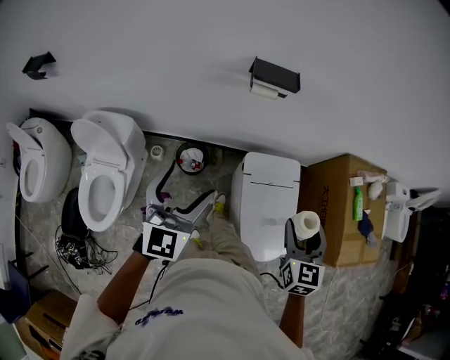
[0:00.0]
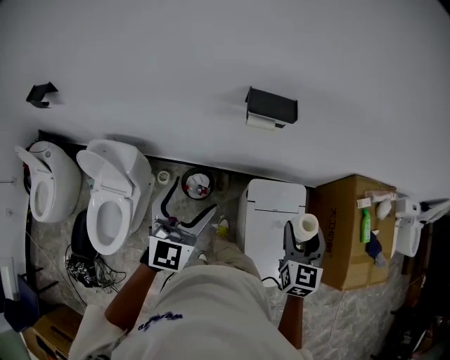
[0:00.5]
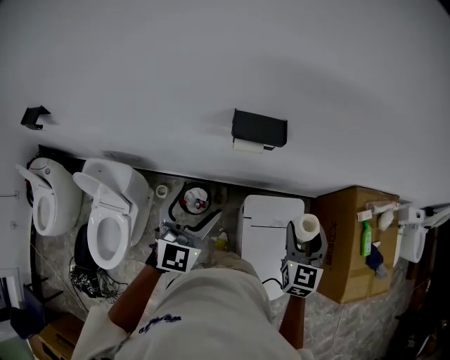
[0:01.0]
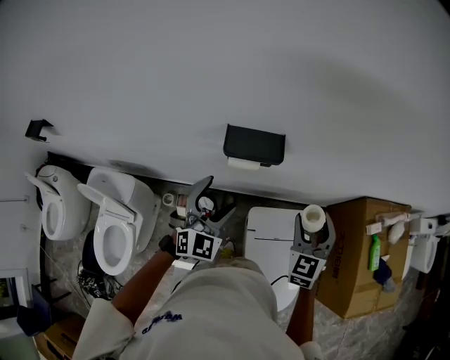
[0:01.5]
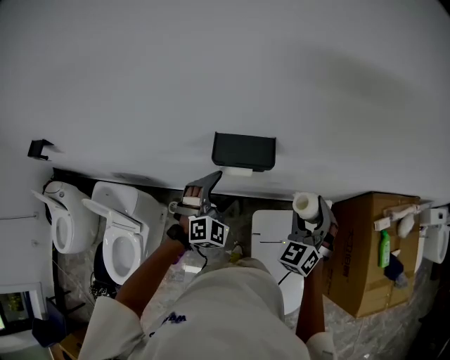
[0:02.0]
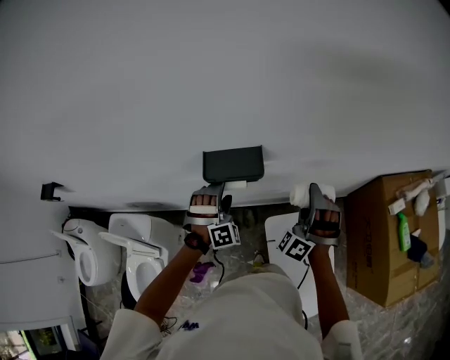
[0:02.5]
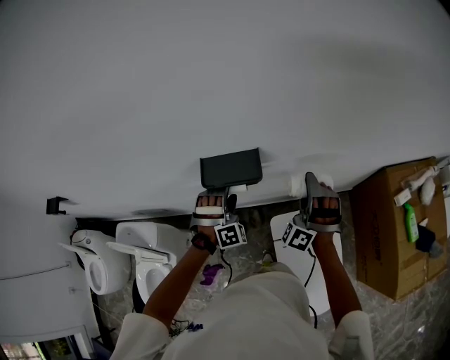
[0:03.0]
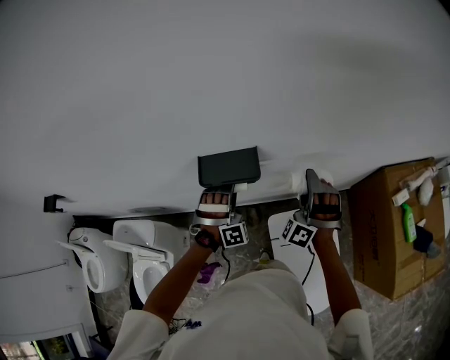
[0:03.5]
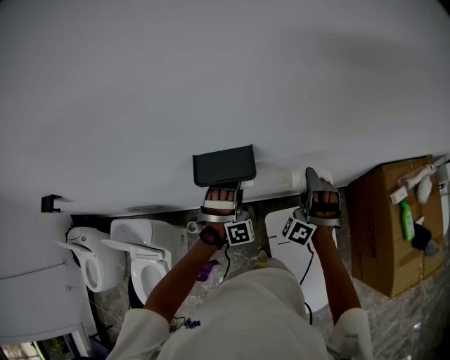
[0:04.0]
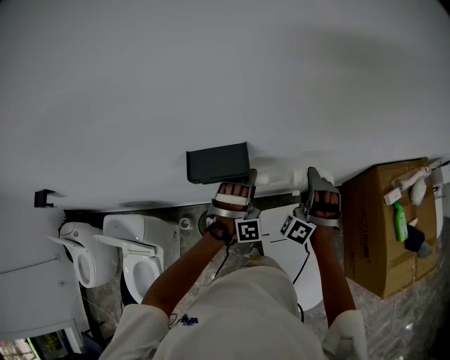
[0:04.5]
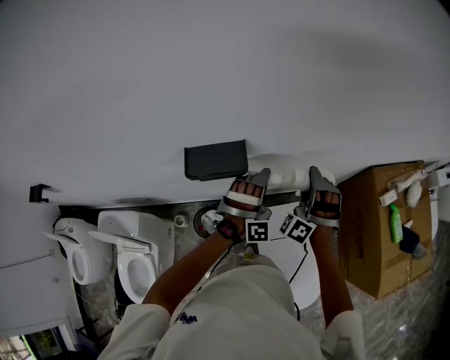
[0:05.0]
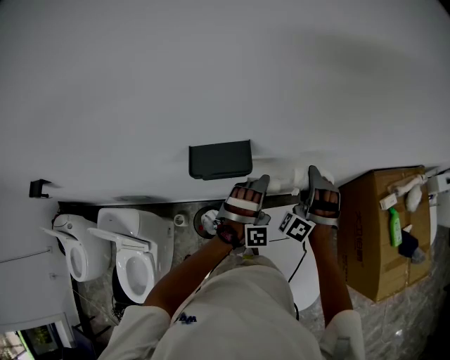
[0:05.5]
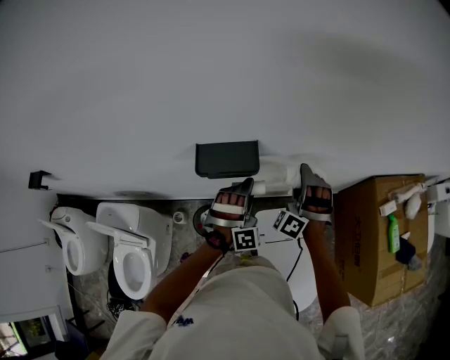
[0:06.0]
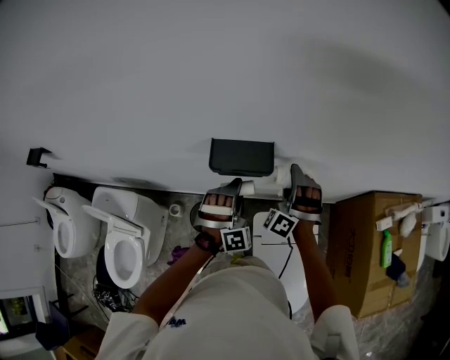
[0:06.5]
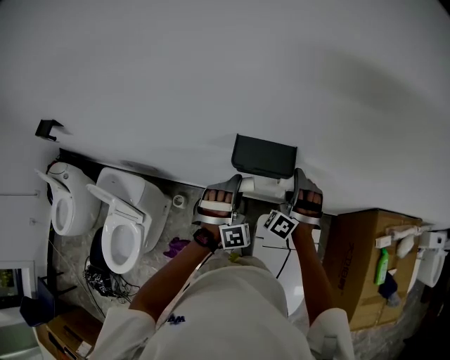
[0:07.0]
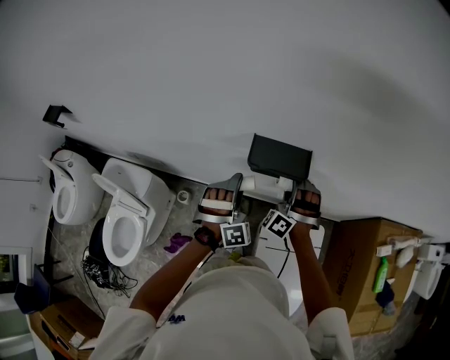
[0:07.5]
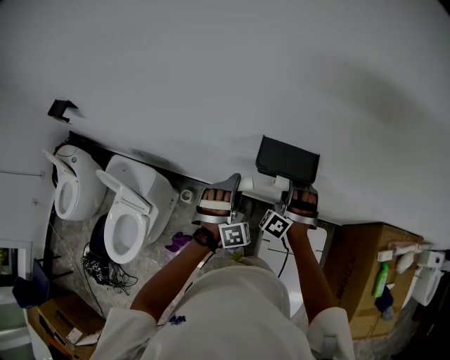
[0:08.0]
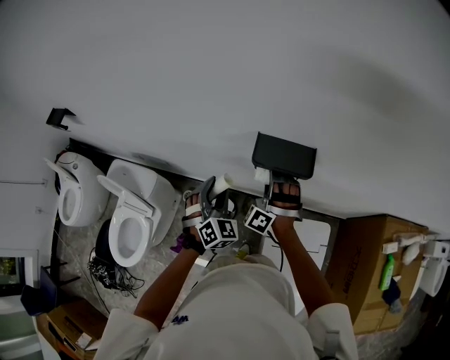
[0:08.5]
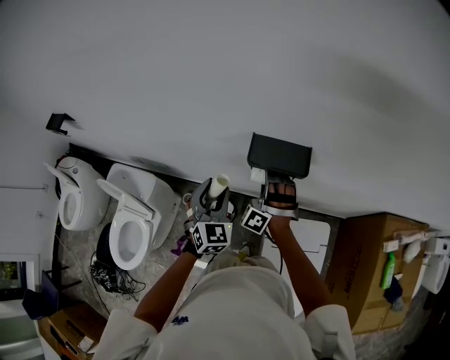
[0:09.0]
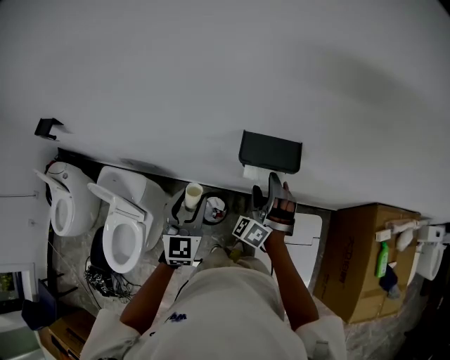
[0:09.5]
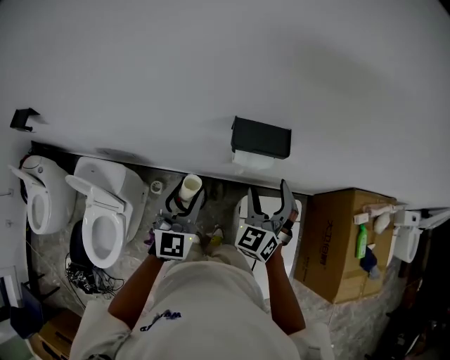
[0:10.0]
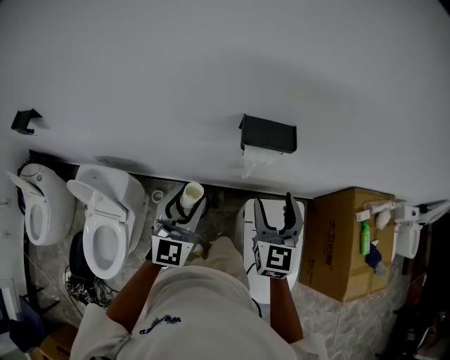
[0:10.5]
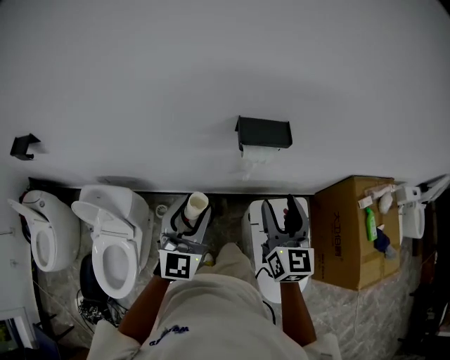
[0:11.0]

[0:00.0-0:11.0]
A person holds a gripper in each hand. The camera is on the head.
0.0 to 2.0 s: The right gripper shifts approximately 35 cm forward, and changes its angle by about 30 degrees; the left gripper travels forward and downward by roughly 35 cm, and changes its angle by approximately 50 degrees.
2.0 to 3.5 s: Both grippers travel together forward, some 5 cm. The left gripper swivels approximately 40 degrees, and closes its fingers. Meanwhile the right gripper rotates approximately 40 degrees.
3.5 to 5.5 s: The left gripper heads to the right, covering about 15 cm.
5.5 to 7.5 s: Both grippers move to the left, approximately 20 cm. The left gripper turns by approximately 30 degrees.
7.5 to 9.0 s: The grippers both shift to the left by some 10 cm. The left gripper twists roughly 50 degrees counterclockwise, seen from behind.
9.0 to 11.0 s: The right gripper is displaced backward and upward by approximately 25 cm, and rolls clockwise, seen from behind, by roughly 90 degrees. The left gripper moves backward and upward, roughly 15 cm, and rotates about 30 degrees.

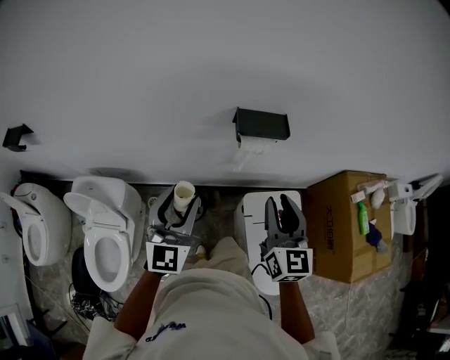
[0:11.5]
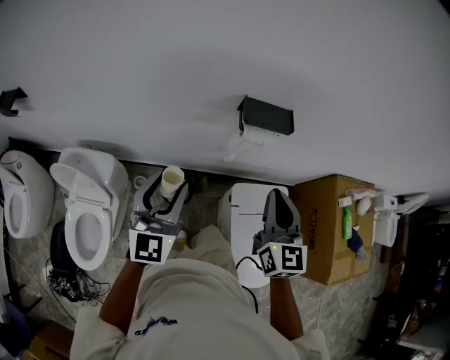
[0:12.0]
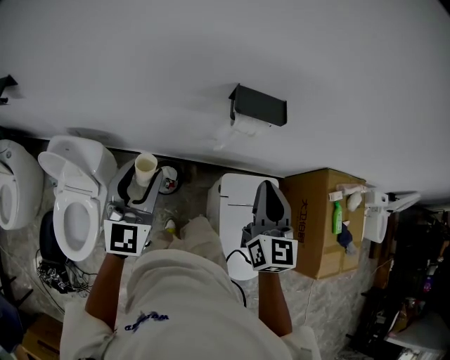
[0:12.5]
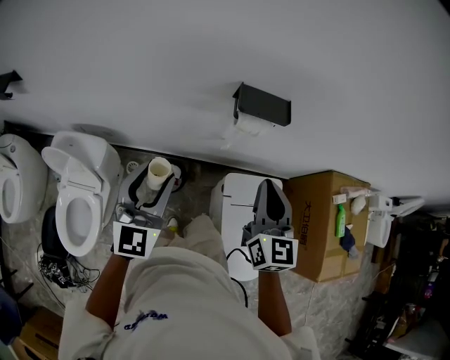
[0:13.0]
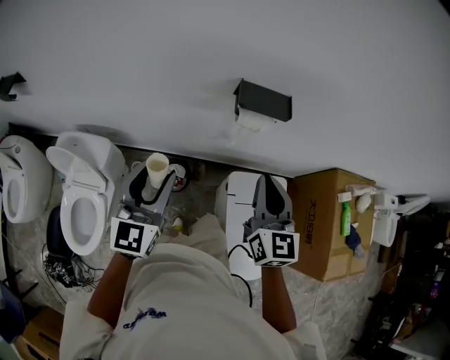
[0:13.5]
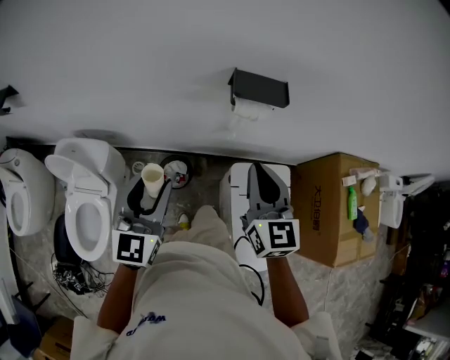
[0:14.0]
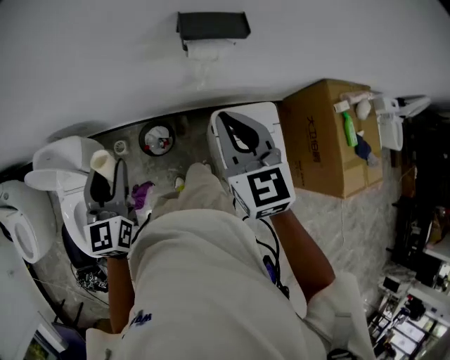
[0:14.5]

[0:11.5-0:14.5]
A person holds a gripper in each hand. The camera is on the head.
11.5 to 13.0 s: There are only small adjustments of the grippers.
13.0 to 14.5 s: The right gripper shifts by some 5 cm. Meanwhile the left gripper travels downward and to the left by approximately 10 cm.

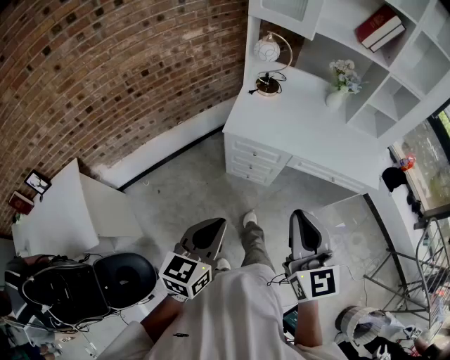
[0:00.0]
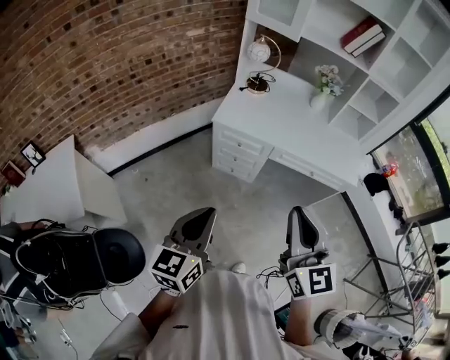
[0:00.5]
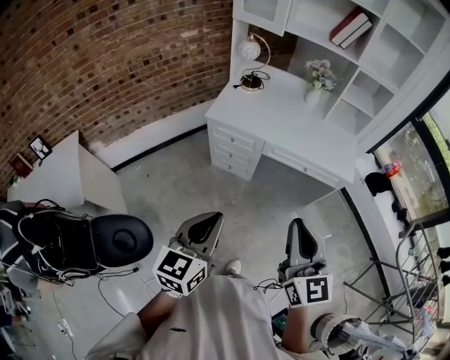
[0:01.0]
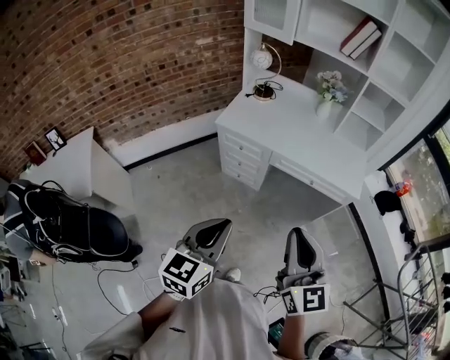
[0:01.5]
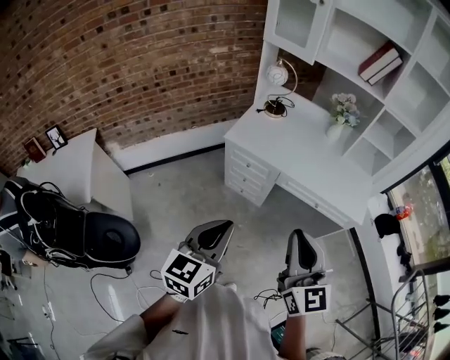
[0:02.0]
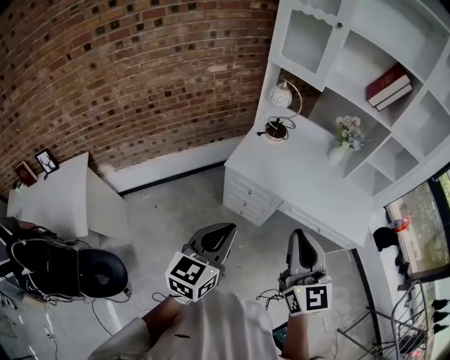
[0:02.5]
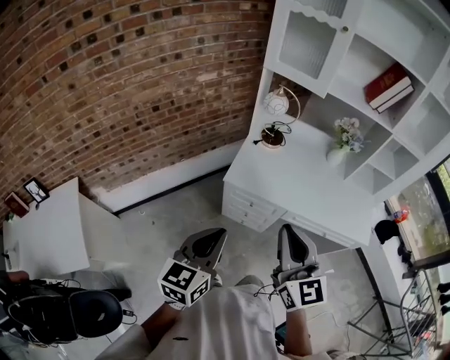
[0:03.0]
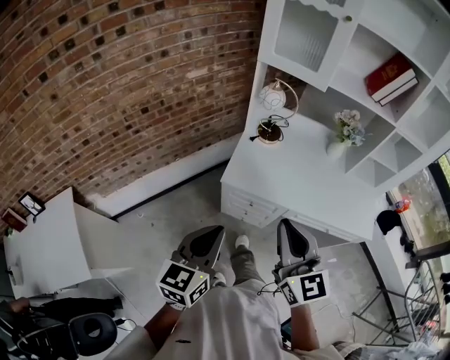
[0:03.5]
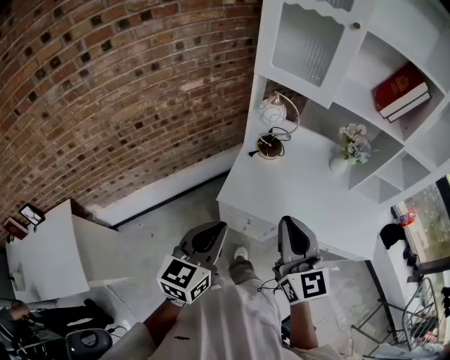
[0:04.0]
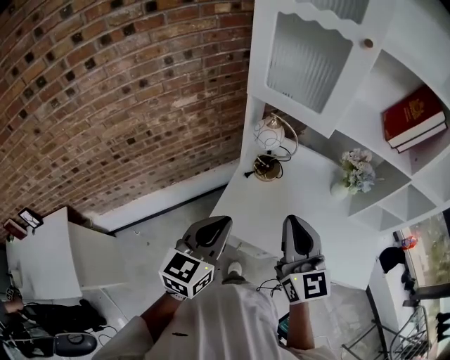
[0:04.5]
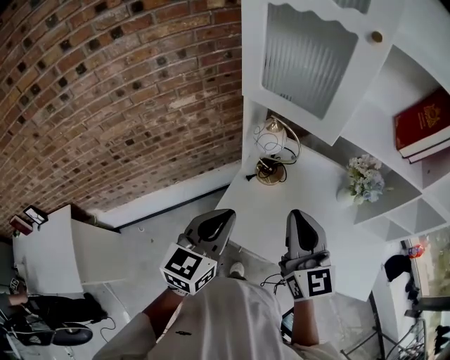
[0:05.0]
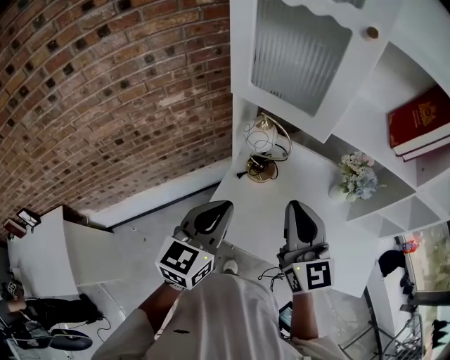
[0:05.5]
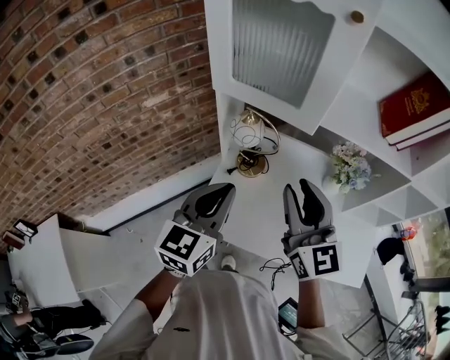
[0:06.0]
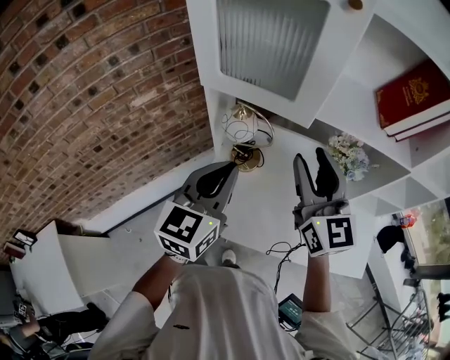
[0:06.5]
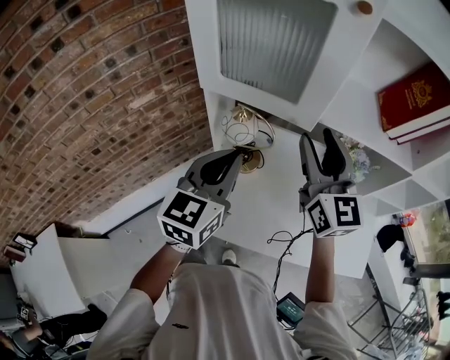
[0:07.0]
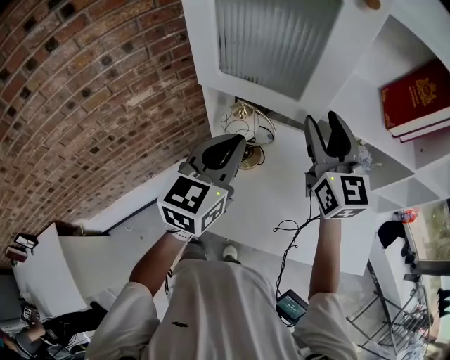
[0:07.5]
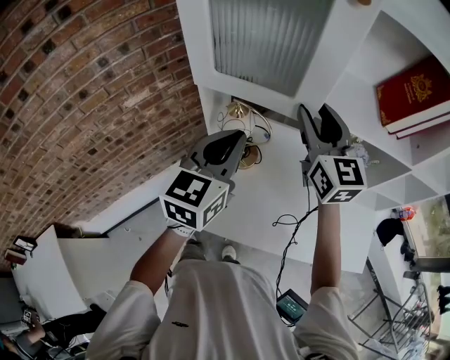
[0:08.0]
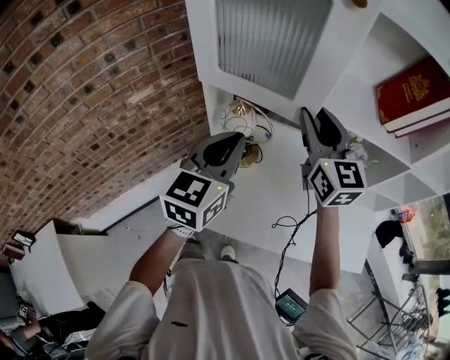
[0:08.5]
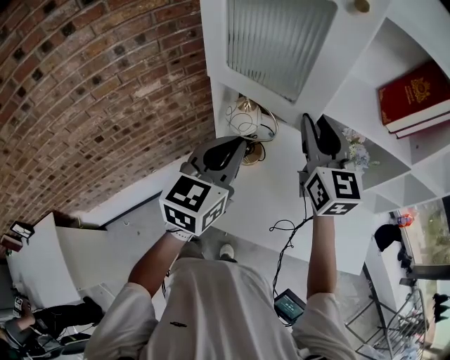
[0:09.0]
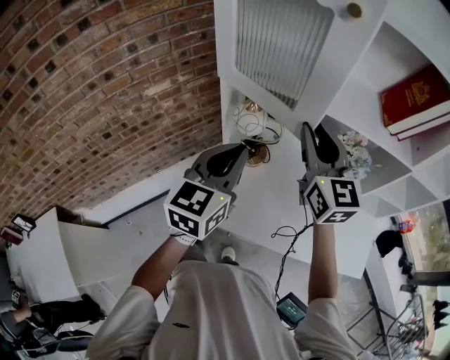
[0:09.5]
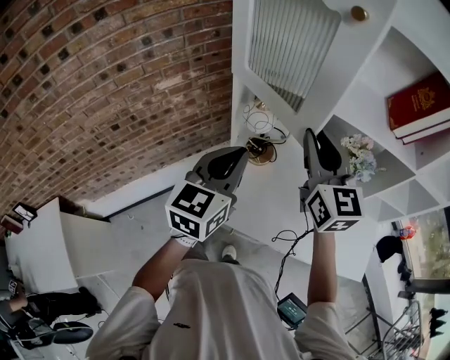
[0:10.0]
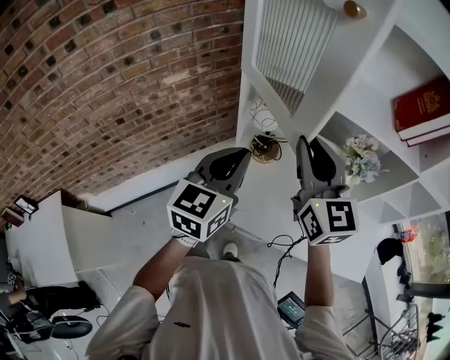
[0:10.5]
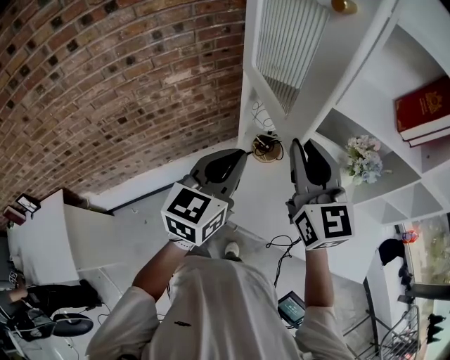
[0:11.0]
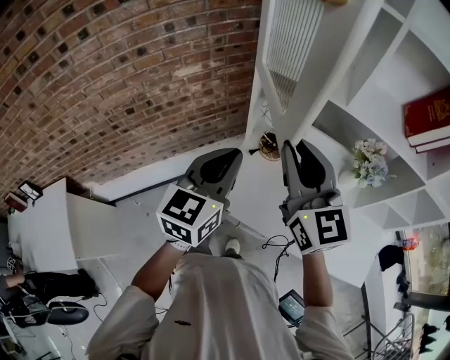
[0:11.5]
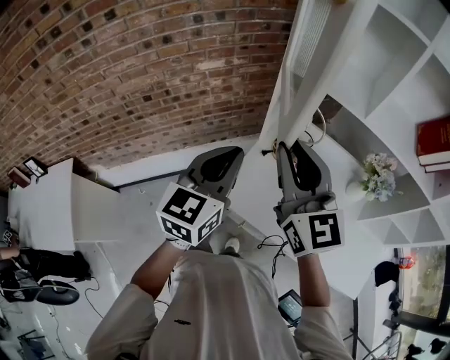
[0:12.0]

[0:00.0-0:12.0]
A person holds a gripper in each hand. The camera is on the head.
0.0 to 2.0 s: Both grippers travel together to the right and backward, some 15 cm.
2.0 to 4.0 s: Both grippers move forward and to the left, some 40 cm.
4.0 to 6.0 s: Both grippers move forward and to the right, approximately 30 cm. The right gripper opens.
6.0 to 8.0 s: Both grippers travel together forward, approximately 15 cm.
8.0 to 10.0 s: Both grippers move backward, approximately 10 cm. The right gripper closes up.
10.0 to 12.0 s: The left gripper travels to the left by roughly 10 cm, while the right gripper travels to the left and backward by about 15 cm.

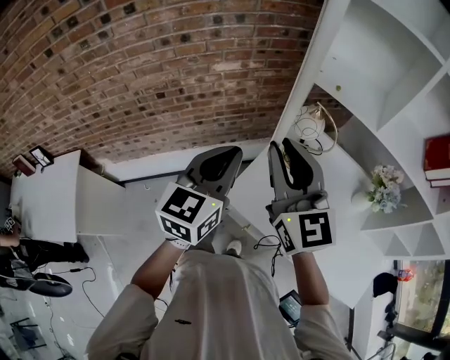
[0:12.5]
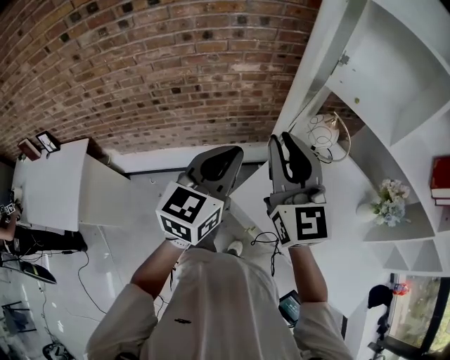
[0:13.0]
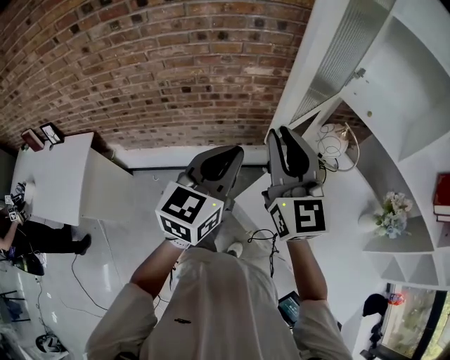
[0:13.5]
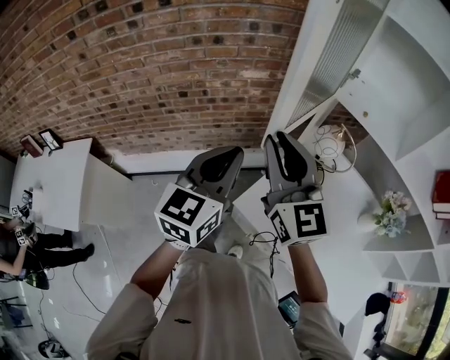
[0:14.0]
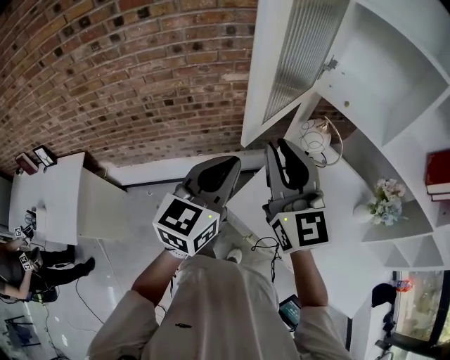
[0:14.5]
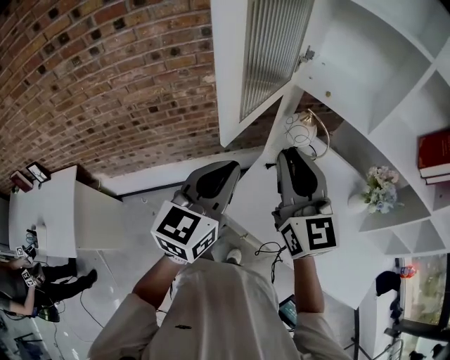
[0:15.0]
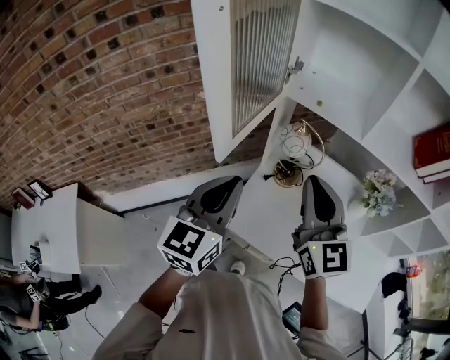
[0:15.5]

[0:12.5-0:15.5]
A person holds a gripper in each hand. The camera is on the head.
12.5 to 14.0 s: The two grippers go roughly 5 cm to the left.
14.0 to 15.5 s: The right gripper shifts about 20 cm to the right, and turns by approximately 20 degrees; the left gripper shifts some 10 cm to the right.
